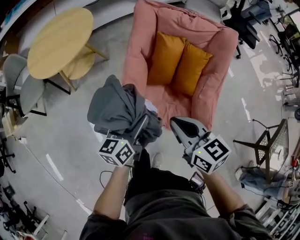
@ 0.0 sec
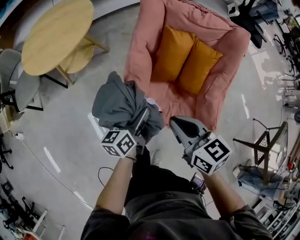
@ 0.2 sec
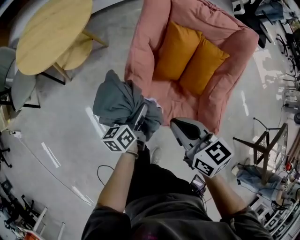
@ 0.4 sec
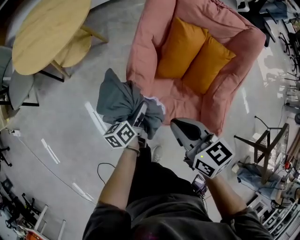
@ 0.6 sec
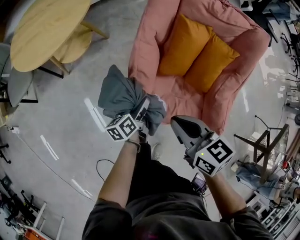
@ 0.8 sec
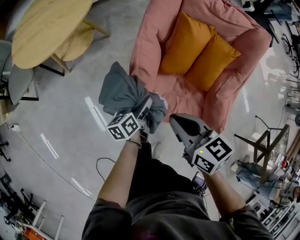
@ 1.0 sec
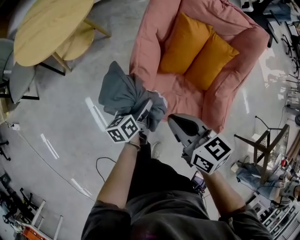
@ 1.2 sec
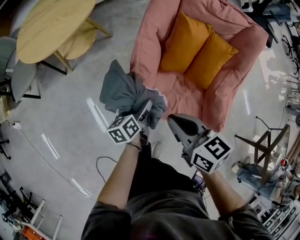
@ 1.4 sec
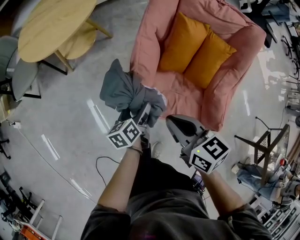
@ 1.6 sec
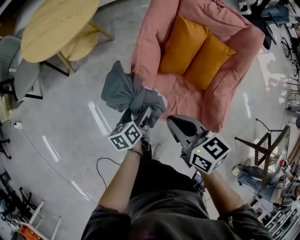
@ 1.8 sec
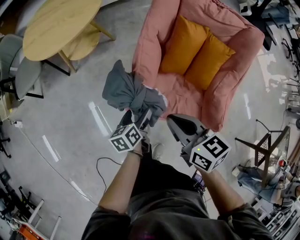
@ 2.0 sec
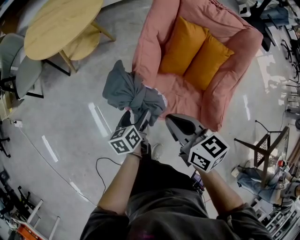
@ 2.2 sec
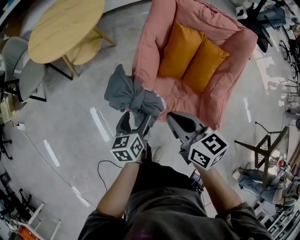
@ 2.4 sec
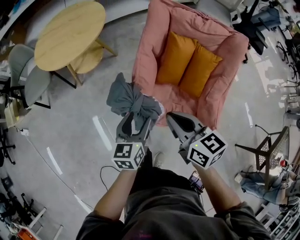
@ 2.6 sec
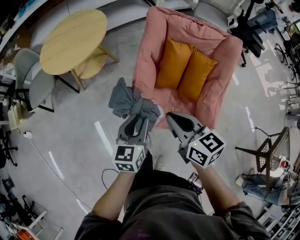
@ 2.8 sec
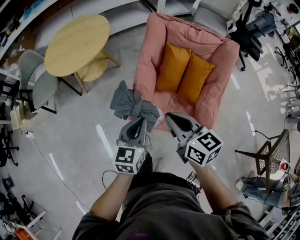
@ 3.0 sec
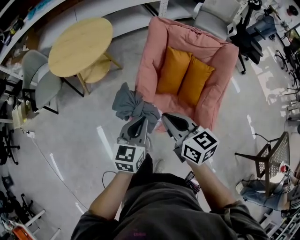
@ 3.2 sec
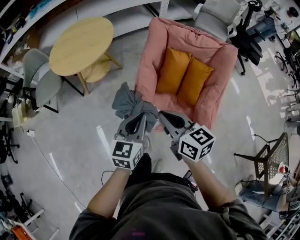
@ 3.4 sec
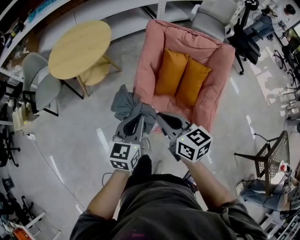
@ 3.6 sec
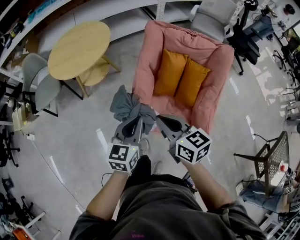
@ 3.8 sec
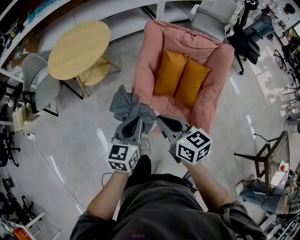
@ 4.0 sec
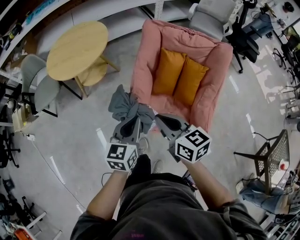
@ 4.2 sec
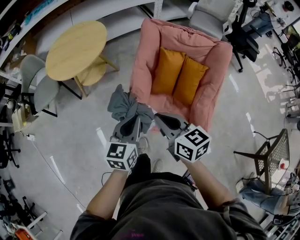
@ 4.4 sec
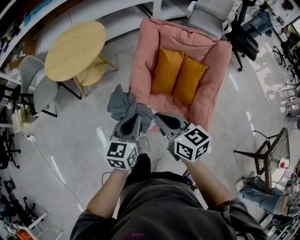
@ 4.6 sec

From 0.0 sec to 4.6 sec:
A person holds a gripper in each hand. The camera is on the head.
From 0.0 sec to 1.6 sec: The right gripper is displaced downward and to the left by approximately 10 cm. The left gripper travels downward by roughly 20 cm, and turns by about 30 degrees.
From 1.6 sec to 3.0 sec: The right gripper shifts approximately 15 cm upward, while the left gripper travels upward by some 25 cm, rotates around the line of its fingers by some 40 degrees, clockwise from behind, and closes.
From 3.0 sec to 4.6 sec: The grippers move only a little.

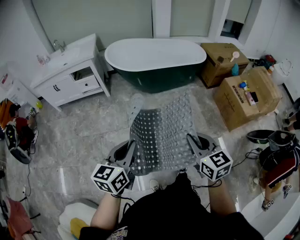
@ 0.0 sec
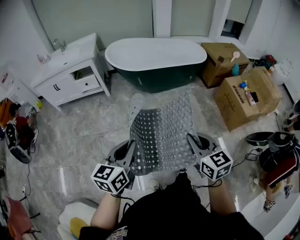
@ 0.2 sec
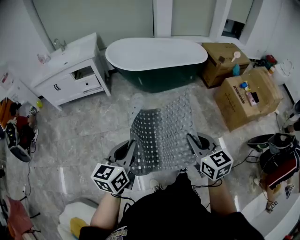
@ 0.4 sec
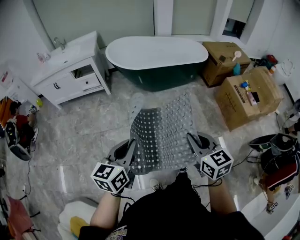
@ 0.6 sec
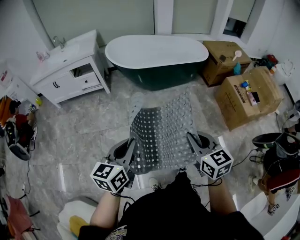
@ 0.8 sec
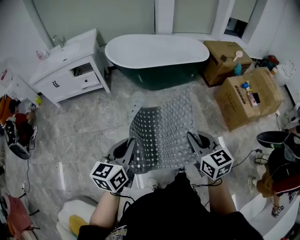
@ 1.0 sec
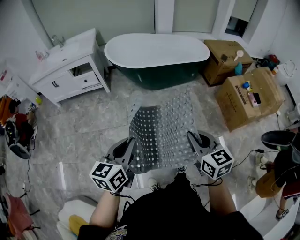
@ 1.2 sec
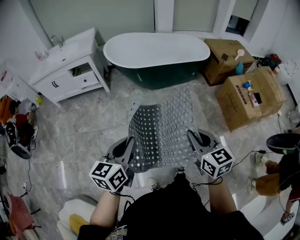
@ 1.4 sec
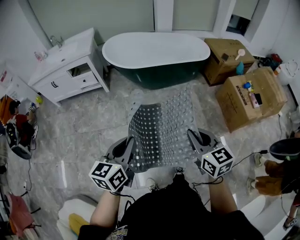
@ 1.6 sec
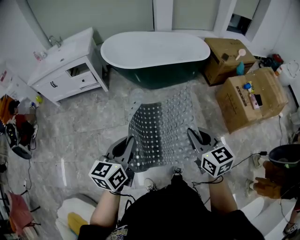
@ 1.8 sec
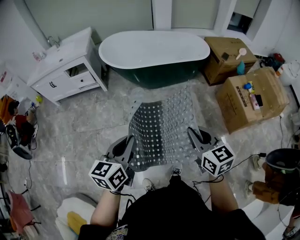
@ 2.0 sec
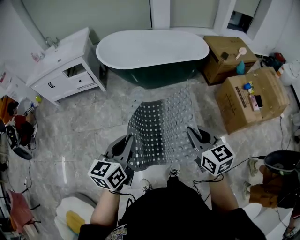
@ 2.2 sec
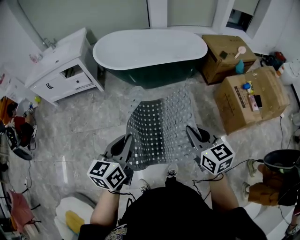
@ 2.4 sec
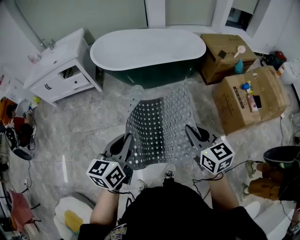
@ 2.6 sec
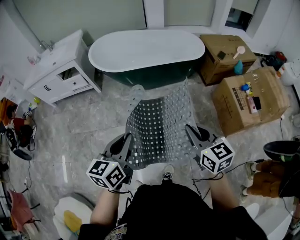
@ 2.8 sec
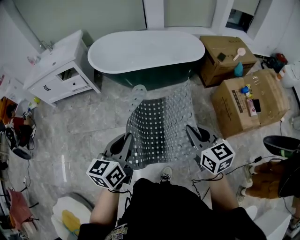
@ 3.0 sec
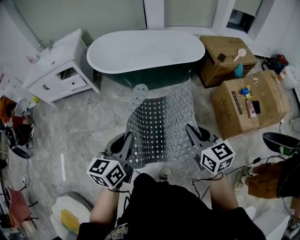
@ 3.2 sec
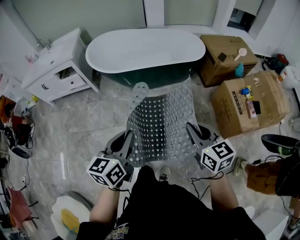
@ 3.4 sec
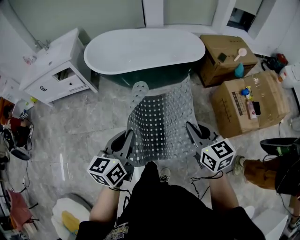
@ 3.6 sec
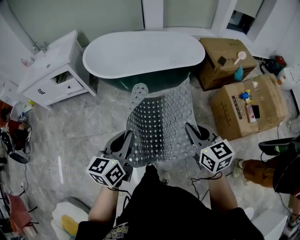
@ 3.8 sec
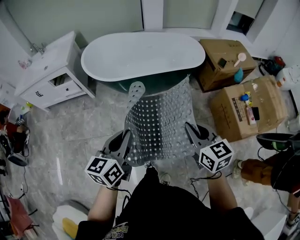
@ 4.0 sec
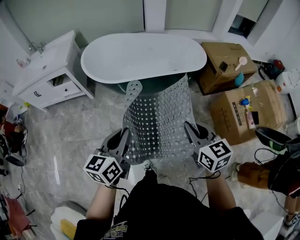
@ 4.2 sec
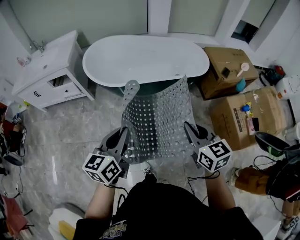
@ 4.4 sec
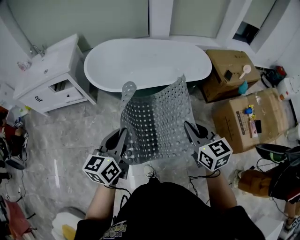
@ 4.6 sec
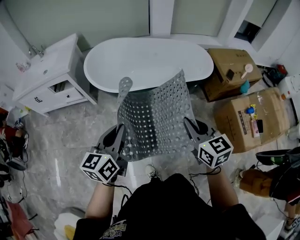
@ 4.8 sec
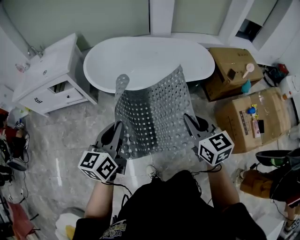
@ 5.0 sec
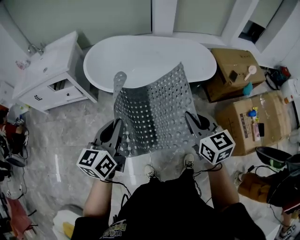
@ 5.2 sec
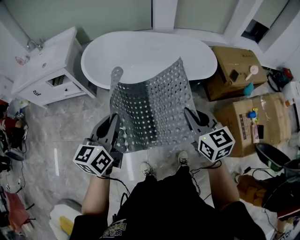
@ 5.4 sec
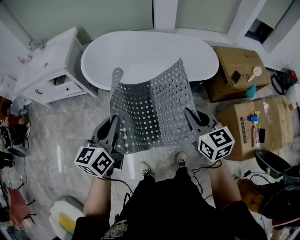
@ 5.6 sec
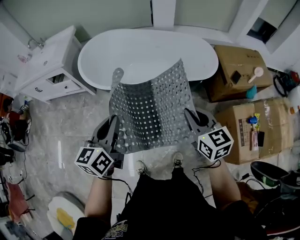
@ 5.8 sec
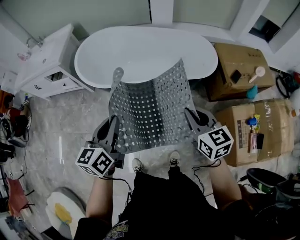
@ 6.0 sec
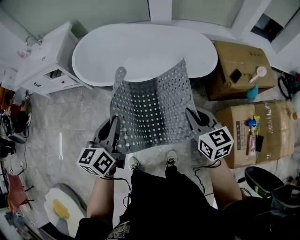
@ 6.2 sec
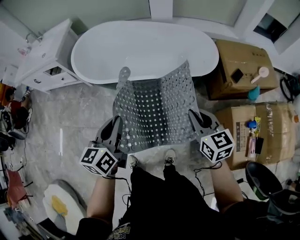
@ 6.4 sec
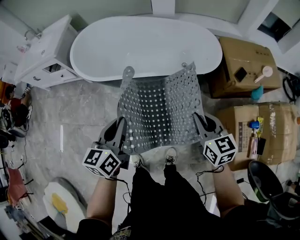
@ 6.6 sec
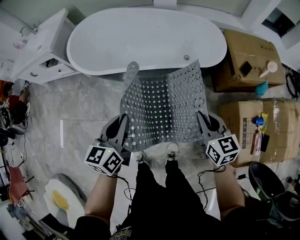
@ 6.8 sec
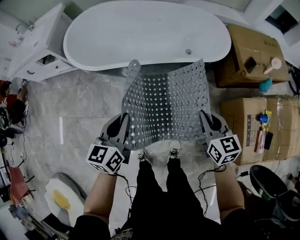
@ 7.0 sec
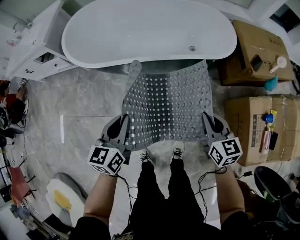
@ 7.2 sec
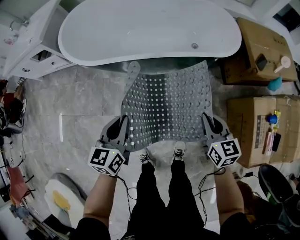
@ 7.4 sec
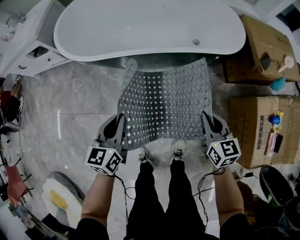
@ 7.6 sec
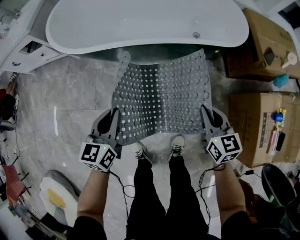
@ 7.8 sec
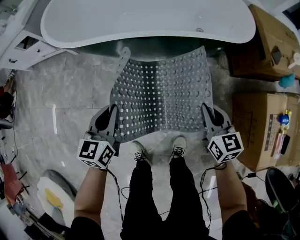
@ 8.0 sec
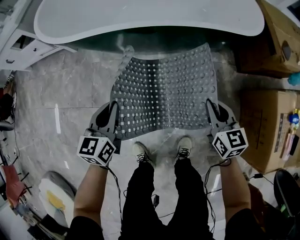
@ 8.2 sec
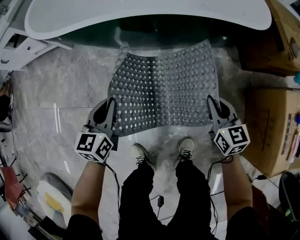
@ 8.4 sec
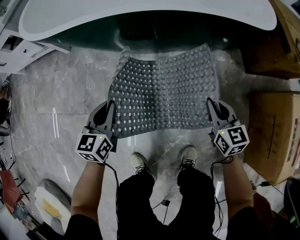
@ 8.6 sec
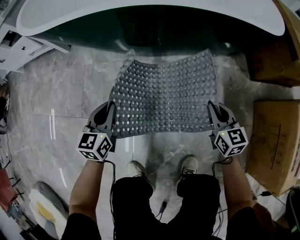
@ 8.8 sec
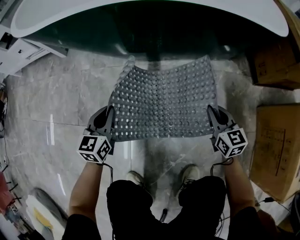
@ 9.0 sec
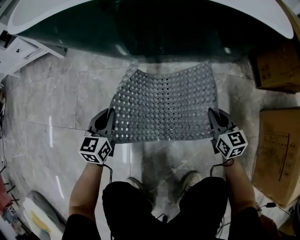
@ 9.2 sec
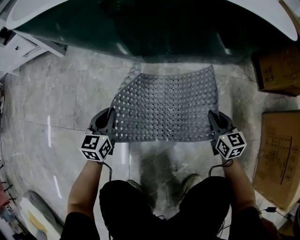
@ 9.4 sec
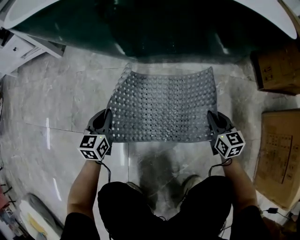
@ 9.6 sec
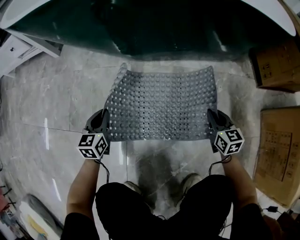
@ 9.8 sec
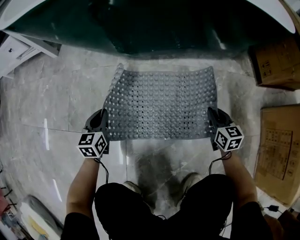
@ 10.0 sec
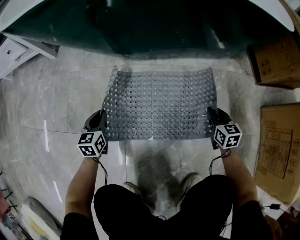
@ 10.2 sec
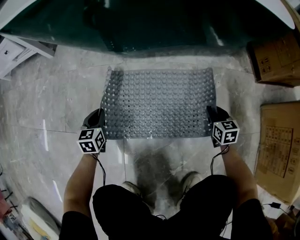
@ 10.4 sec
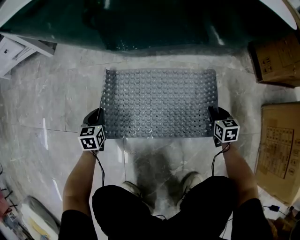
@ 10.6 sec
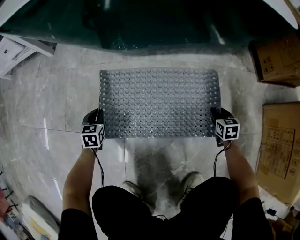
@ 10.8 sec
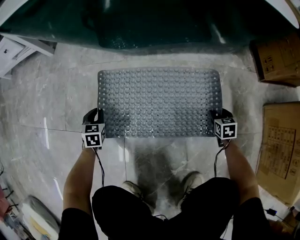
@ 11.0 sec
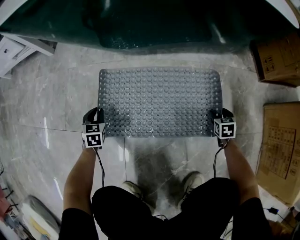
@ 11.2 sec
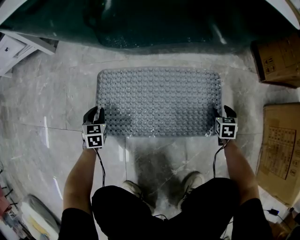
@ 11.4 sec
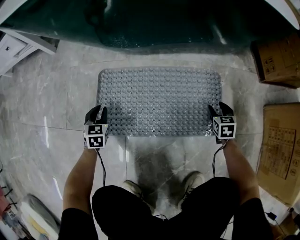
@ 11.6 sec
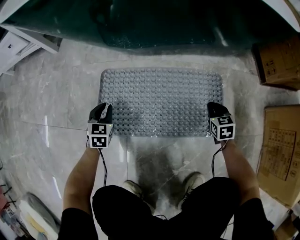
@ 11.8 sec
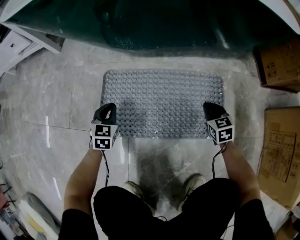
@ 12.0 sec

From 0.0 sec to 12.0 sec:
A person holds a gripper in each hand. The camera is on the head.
From 0.0 sec to 1.6 sec: The two grippers go some 10 cm forward.
From 1.6 sec to 3.0 sec: The two grippers go some 20 cm to the right and forward.
From 3.0 sec to 4.4 sec: Both grippers travel together forward, about 20 cm.
From 4.4 sec to 6.0 sec: The grippers both shift forward and to the right by about 25 cm.
From 6.0 sec to 7.6 sec: The grippers both shift downward by approximately 30 cm.
From 7.6 sec to 9.0 sec: Both grippers travel together downward, approximately 40 cm.
From 9.0 sec to 10.4 sec: The two grippers go approximately 20 cm downward.
From 10.4 sec to 12.0 sec: The right gripper shifts roughly 5 cm to the left, and opens, then closes again.

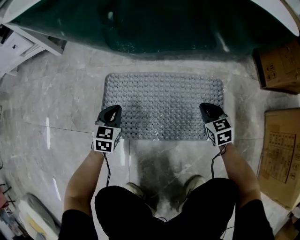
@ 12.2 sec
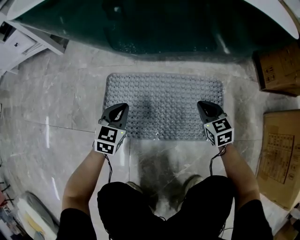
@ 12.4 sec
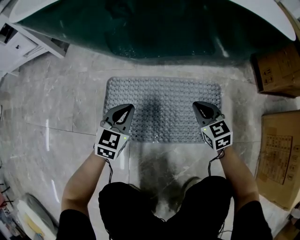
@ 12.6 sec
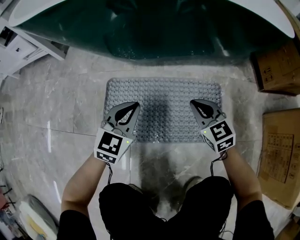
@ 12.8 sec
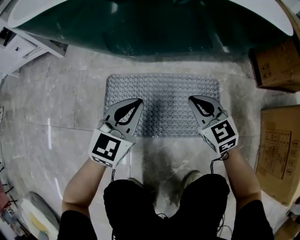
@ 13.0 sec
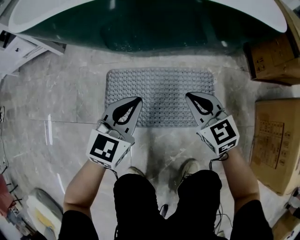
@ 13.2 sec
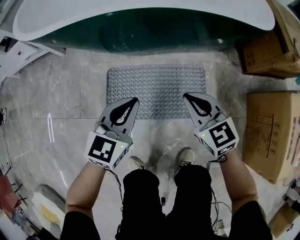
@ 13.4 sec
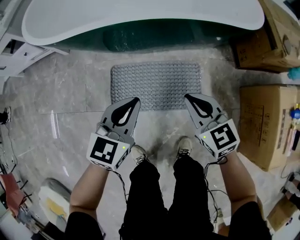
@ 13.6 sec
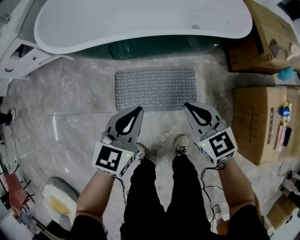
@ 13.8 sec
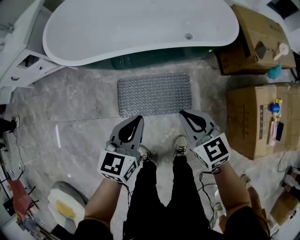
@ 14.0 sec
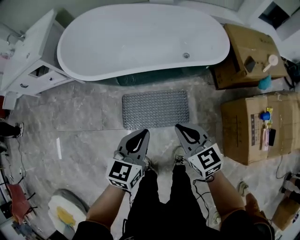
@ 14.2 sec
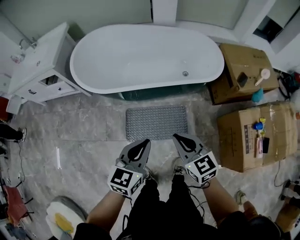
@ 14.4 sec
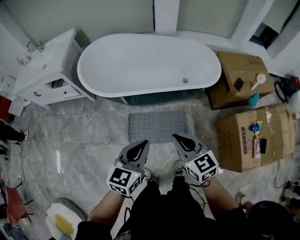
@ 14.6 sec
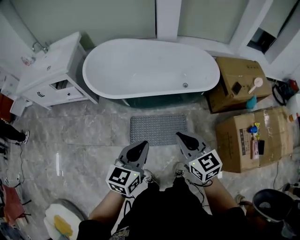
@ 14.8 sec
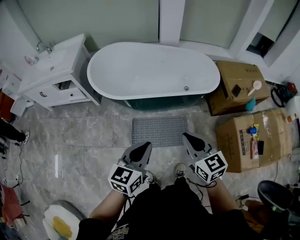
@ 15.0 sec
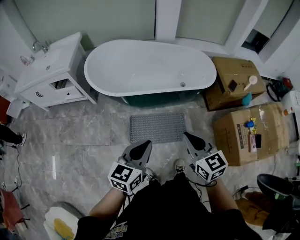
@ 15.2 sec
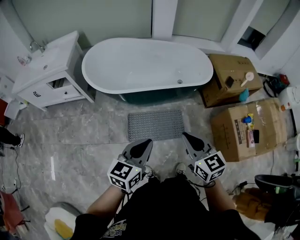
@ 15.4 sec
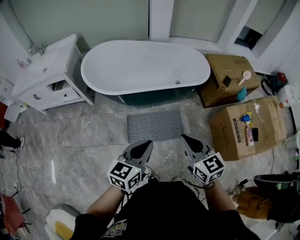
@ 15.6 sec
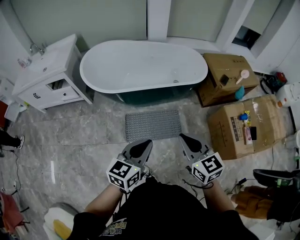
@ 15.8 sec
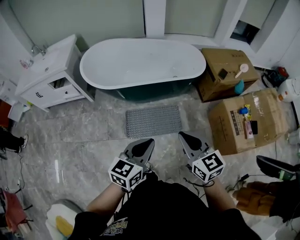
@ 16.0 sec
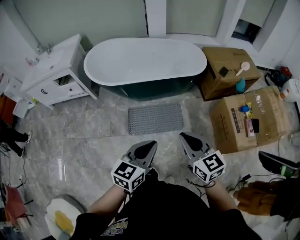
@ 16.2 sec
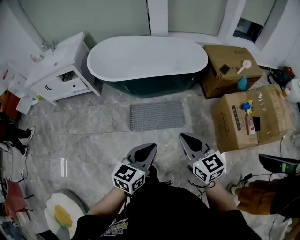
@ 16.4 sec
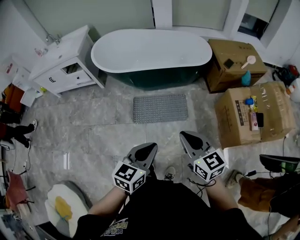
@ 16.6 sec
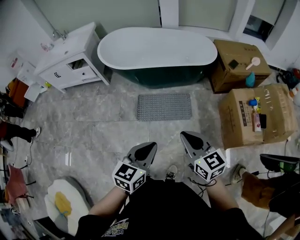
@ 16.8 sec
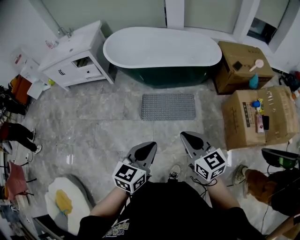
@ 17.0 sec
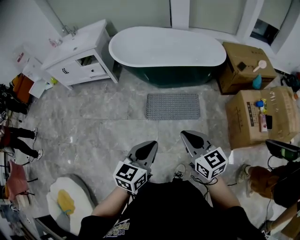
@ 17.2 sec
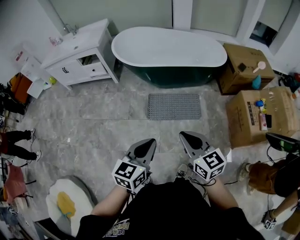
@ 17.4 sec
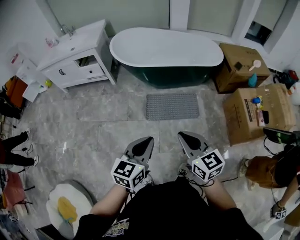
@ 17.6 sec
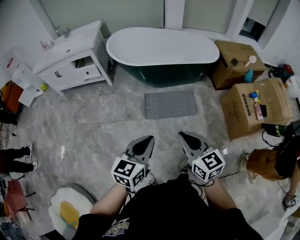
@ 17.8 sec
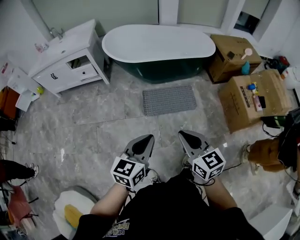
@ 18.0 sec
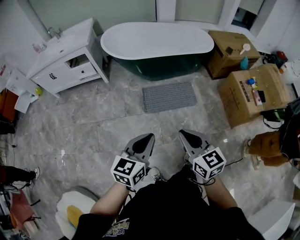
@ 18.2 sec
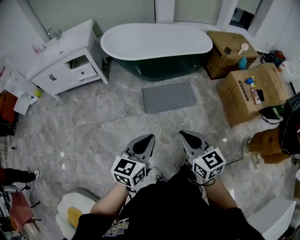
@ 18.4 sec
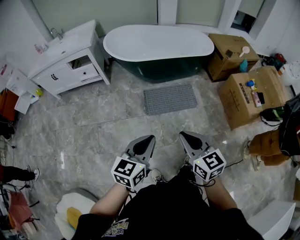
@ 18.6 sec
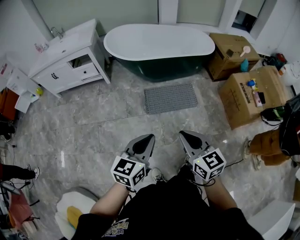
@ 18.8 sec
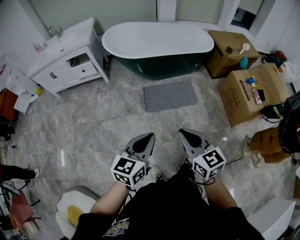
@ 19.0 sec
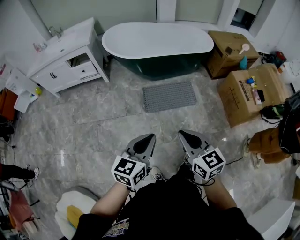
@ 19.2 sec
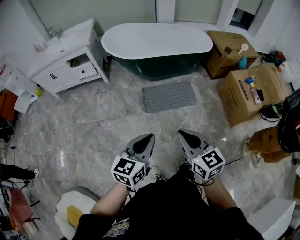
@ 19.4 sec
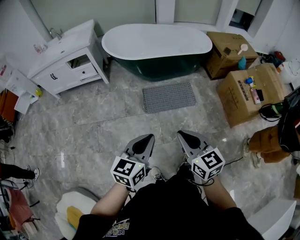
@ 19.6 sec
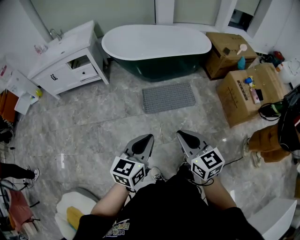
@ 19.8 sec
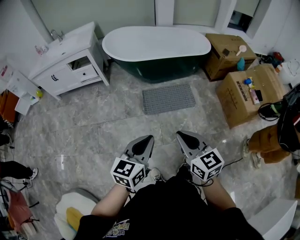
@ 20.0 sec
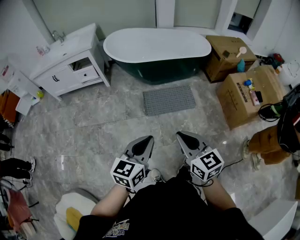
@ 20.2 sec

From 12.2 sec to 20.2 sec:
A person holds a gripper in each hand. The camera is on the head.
From 12.2 sec to 13.8 sec: Both grippers move upward, roughly 50 cm. The left gripper rotates approximately 20 degrees.
From 13.8 sec to 15.4 sec: The two grippers go roughly 40 cm upward and backward.
From 15.4 sec to 17.0 sec: Both grippers move backward, some 25 cm.
From 17.0 sec to 18.6 sec: The right gripper heads to the left and backward, covering some 25 cm, while the left gripper moves to the left, approximately 25 cm.
From 18.6 sec to 20.2 sec: There are only small adjustments of the grippers.
